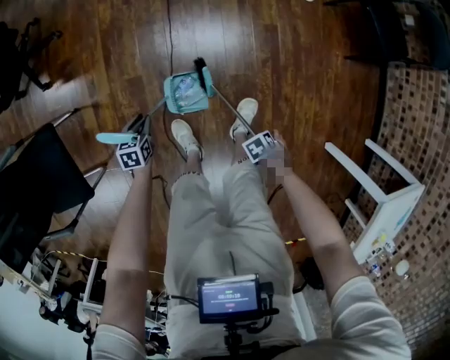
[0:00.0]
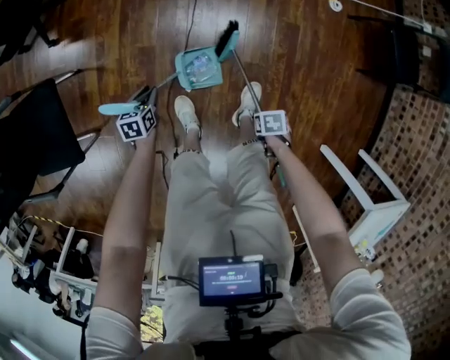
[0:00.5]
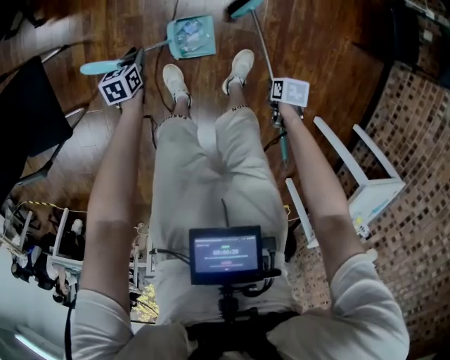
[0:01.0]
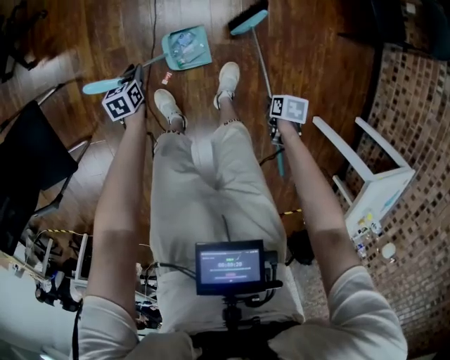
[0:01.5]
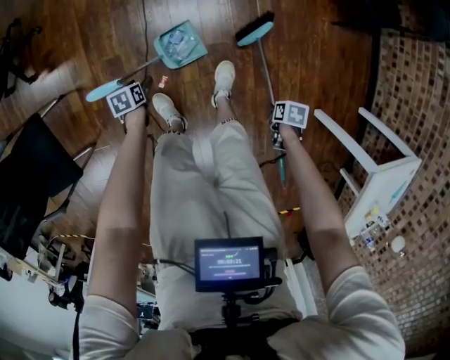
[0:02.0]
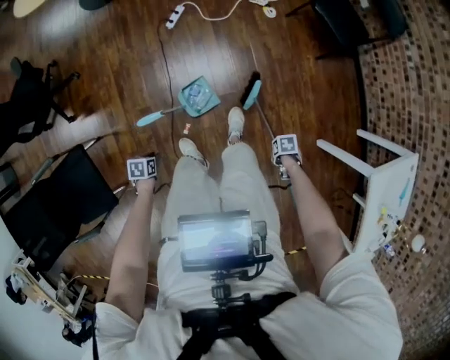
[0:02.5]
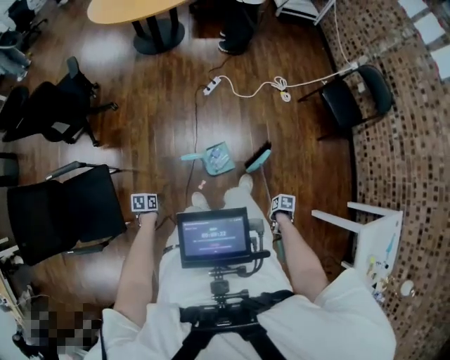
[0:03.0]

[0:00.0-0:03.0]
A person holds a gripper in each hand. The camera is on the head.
0:00.0 to 0:01.5: The left gripper shifts by approximately 10 cm.
0:01.5 to 0:03.0: The left gripper moves about 35 cm, swivels some 20 degrees, and opens, then closes once more.

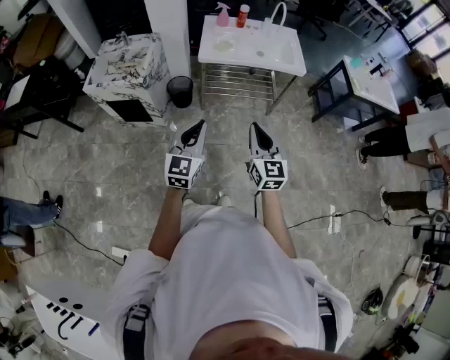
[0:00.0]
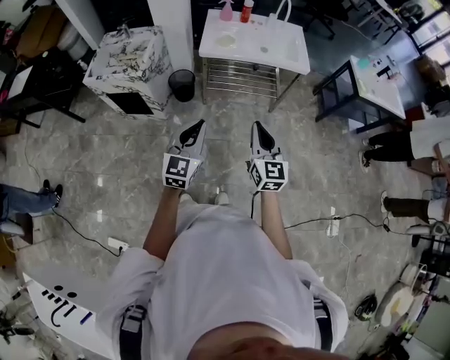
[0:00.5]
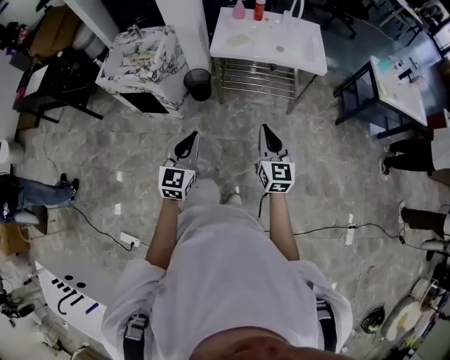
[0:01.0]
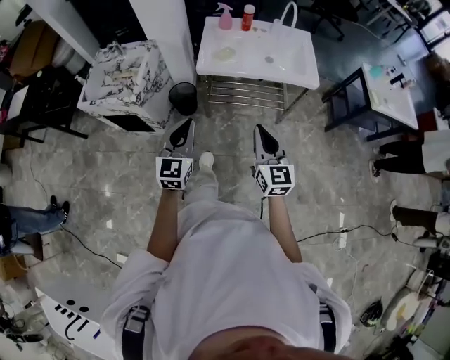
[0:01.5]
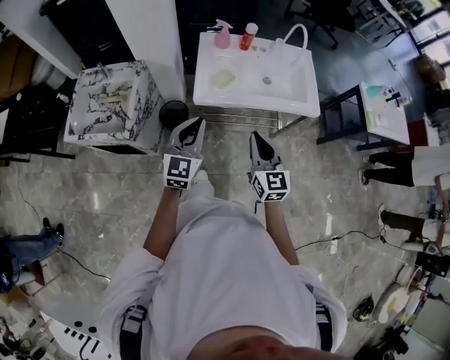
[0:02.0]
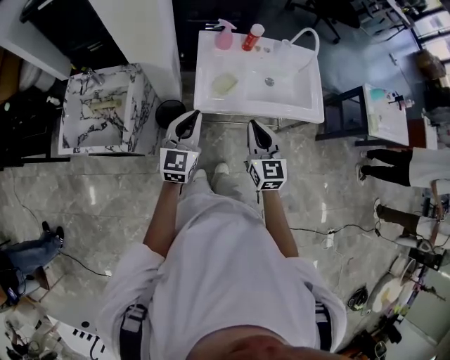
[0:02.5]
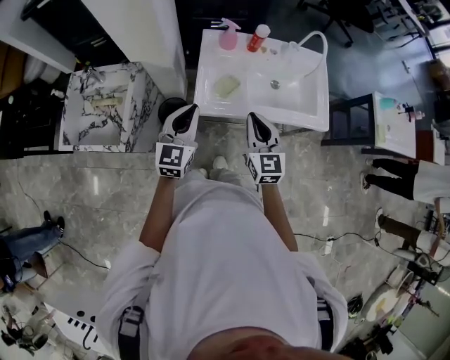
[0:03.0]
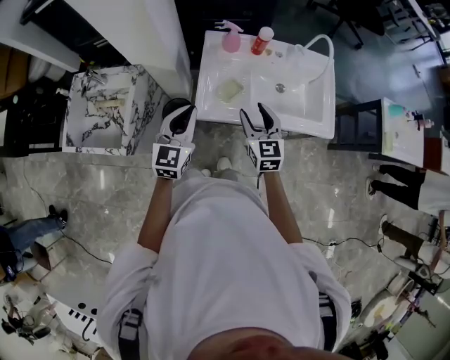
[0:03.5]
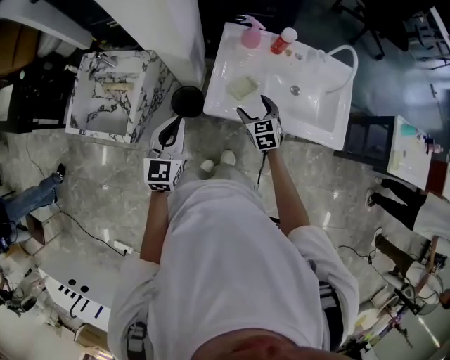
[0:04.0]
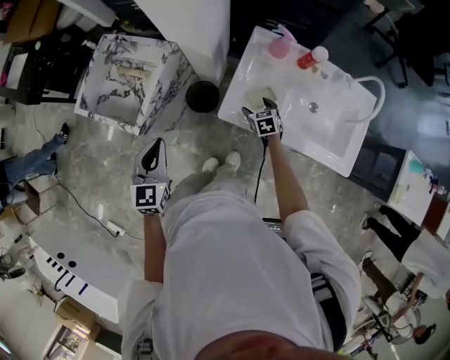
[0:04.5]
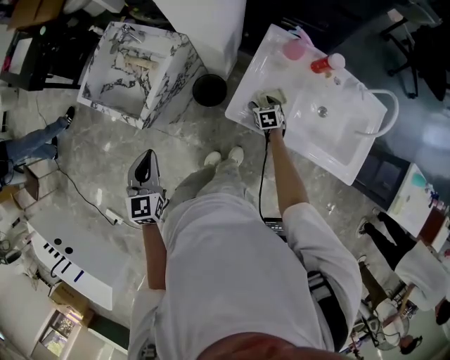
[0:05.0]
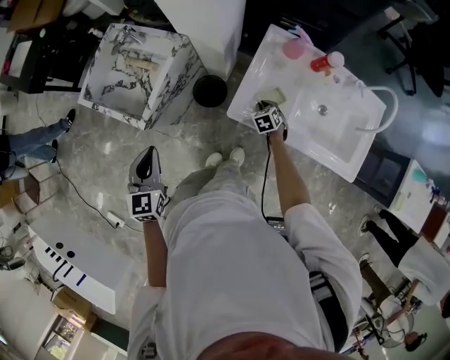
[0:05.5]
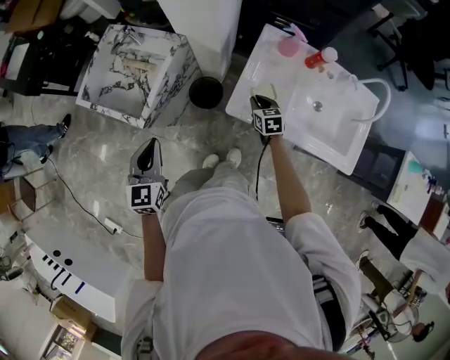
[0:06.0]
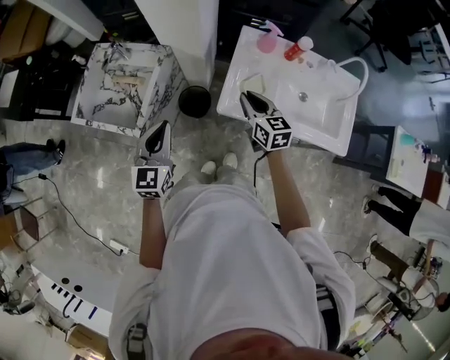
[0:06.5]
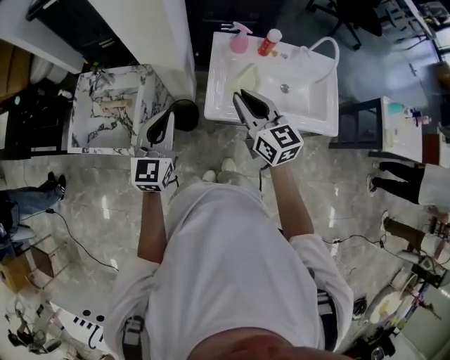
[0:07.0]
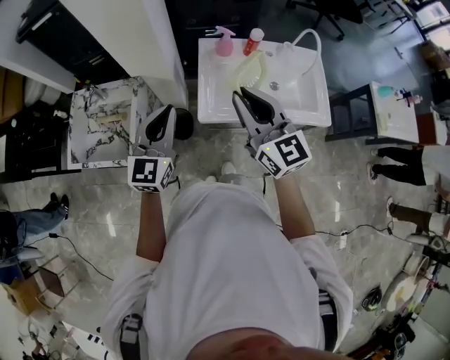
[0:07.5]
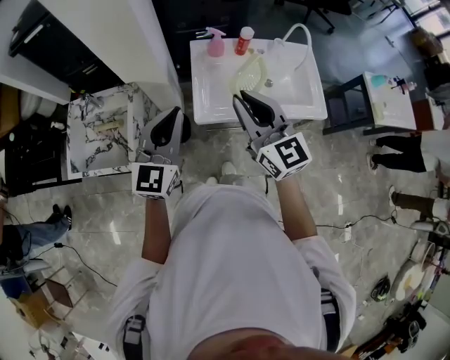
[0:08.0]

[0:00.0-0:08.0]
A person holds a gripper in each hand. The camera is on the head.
0:00.0 to 0:02.0: The grippers both shift forward by roughly 35 cm.
0:02.0 to 0:04.0: The left gripper moves forward and to the left, about 15 cm. Meanwhile the right gripper moves forward and downward, approximately 35 cm, changes its angle by approximately 30 degrees, and opens its fingers.
0:04.0 to 0:06.0: The left gripper heads to the left, covering roughly 15 cm, and rotates approximately 20 degrees. Meanwhile the right gripper travels downward, forward and to the left by approximately 10 cm, and closes its fingers.
0:06.0 to 0:08.0: The right gripper is displaced upward by roughly 40 cm, and points its fingers some 40 degrees further upward, while the left gripper moves upward, some 15 cm, and swivels approximately 40 degrees.

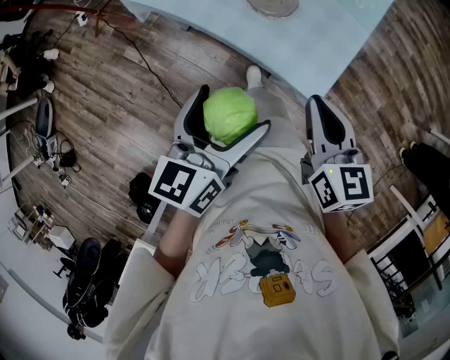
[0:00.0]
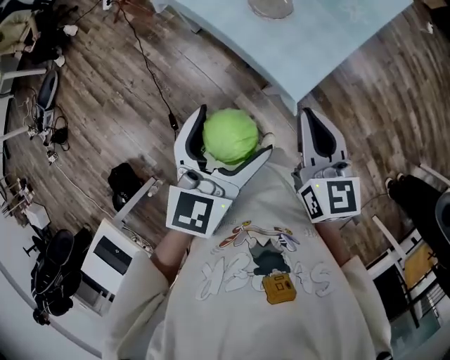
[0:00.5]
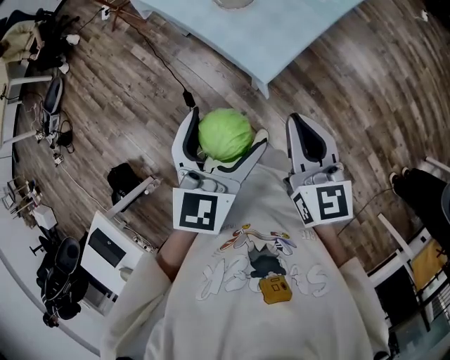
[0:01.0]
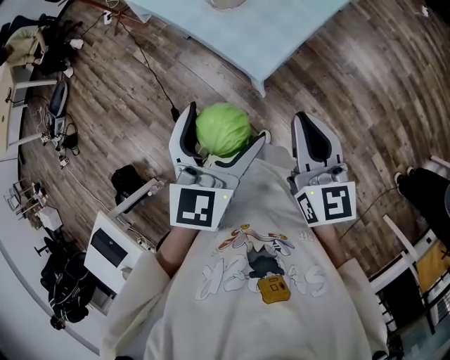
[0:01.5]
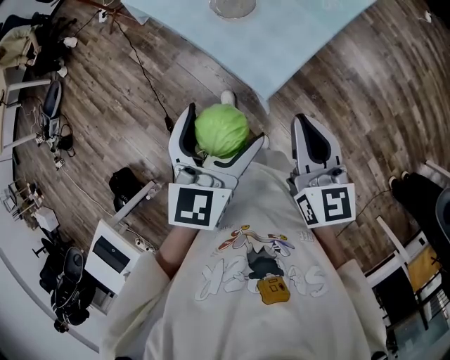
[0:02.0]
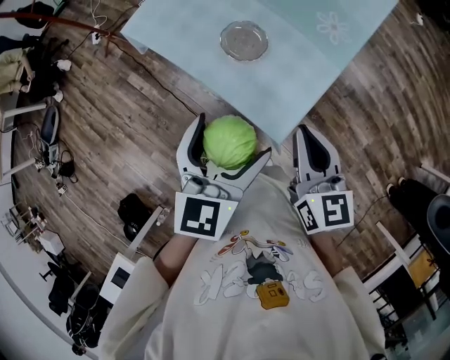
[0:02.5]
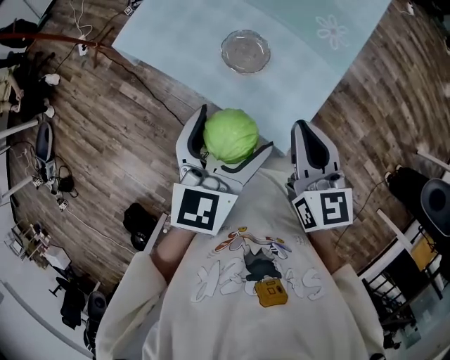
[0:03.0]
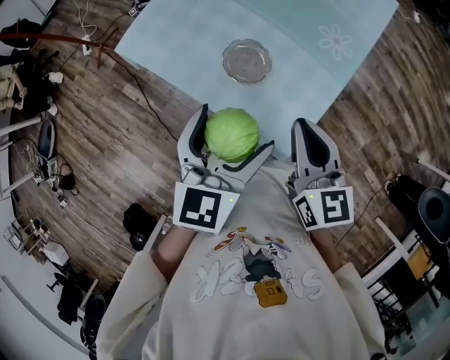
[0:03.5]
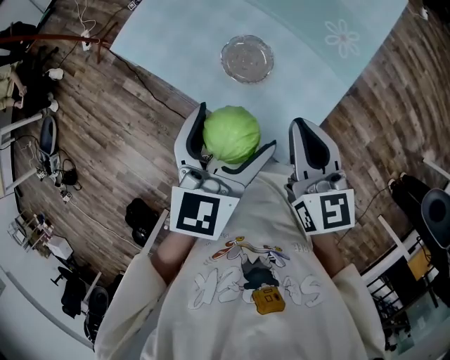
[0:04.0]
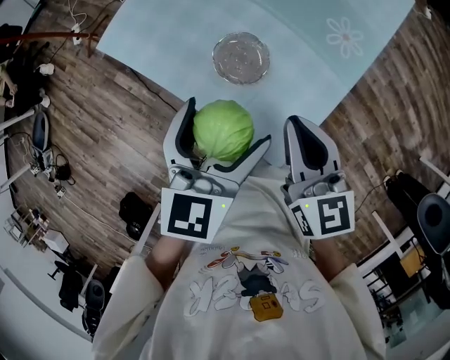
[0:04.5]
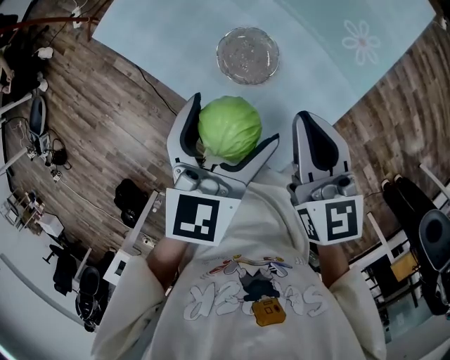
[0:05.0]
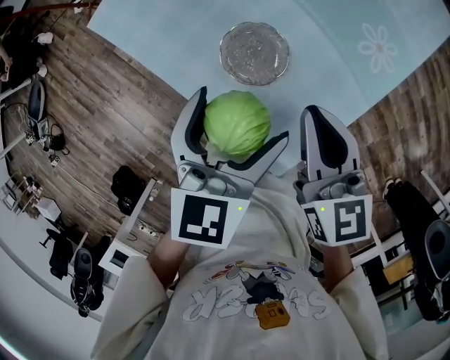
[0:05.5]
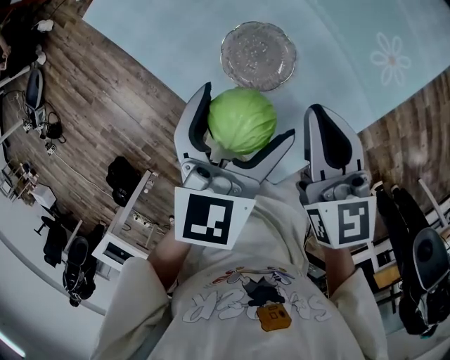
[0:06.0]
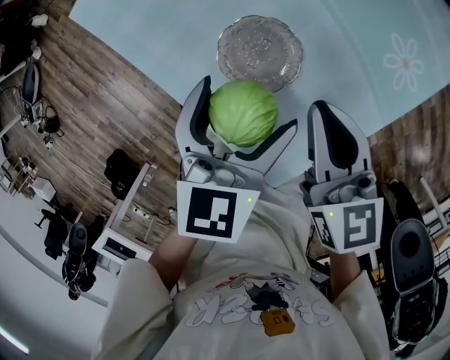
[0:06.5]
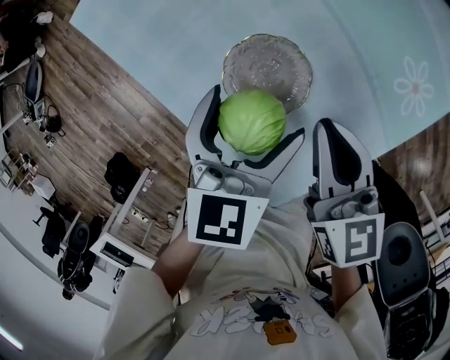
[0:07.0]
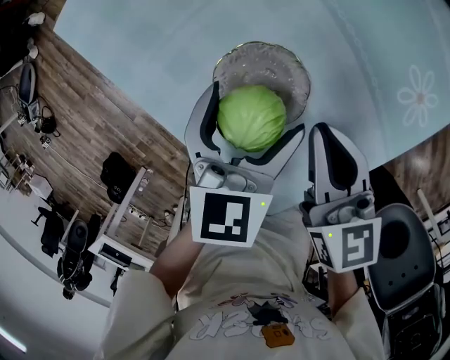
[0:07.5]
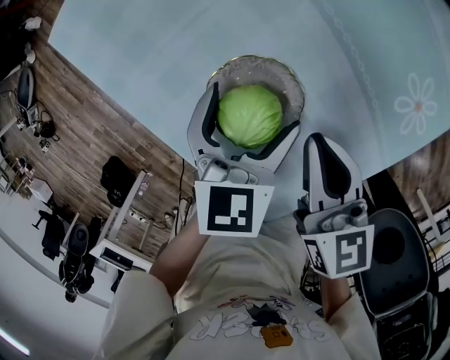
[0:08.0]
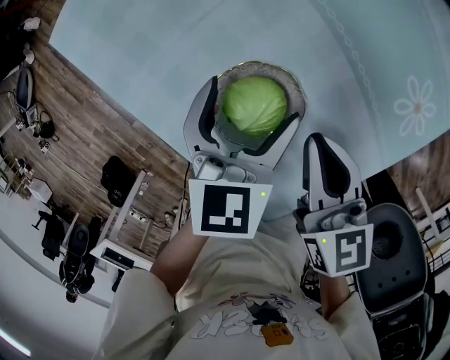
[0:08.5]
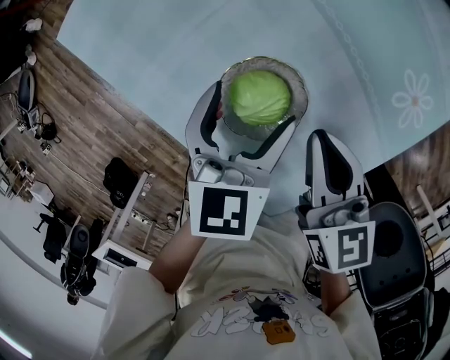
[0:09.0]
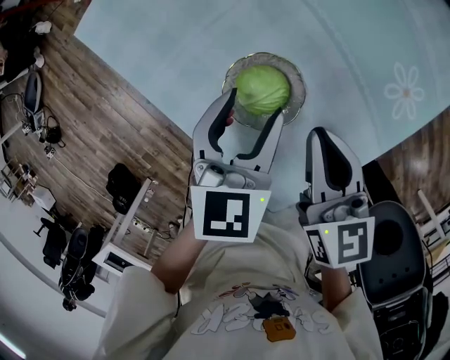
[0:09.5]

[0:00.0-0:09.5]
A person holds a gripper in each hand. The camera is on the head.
0:00.0 to 0:02.0: The two grippers go some 20 cm to the right and backward. The left gripper swivels about 30 degrees.
0:02.0 to 0:04.0: The right gripper shifts about 25 cm forward and to the left; the left gripper is displaced forward by roughly 25 cm.
0:04.0 to 0:05.5: The right gripper is displaced forward and downward by about 15 cm, while the left gripper moves downward and forward, approximately 15 cm.
0:05.5 to 0:07.5: The grippers both shift downward and forward by approximately 15 cm.
0:07.5 to 0:09.5: The left gripper closes its fingers.

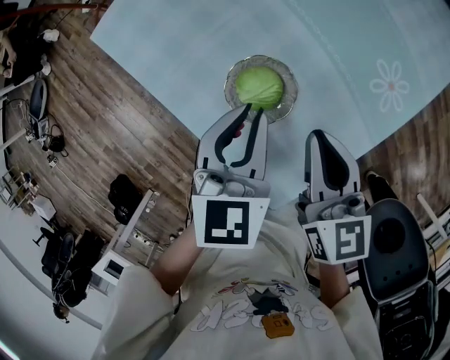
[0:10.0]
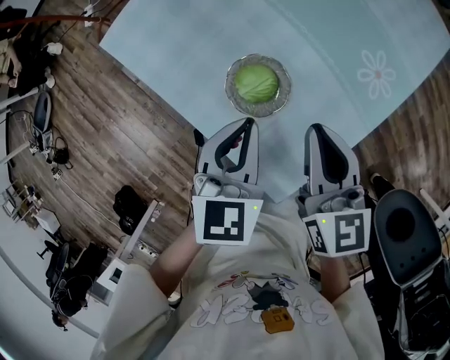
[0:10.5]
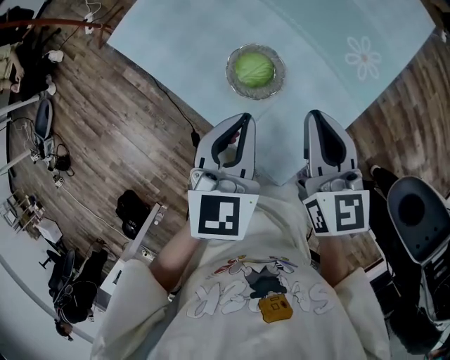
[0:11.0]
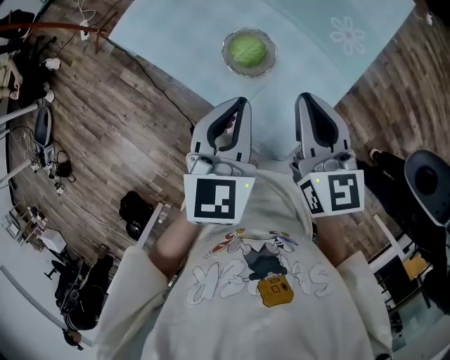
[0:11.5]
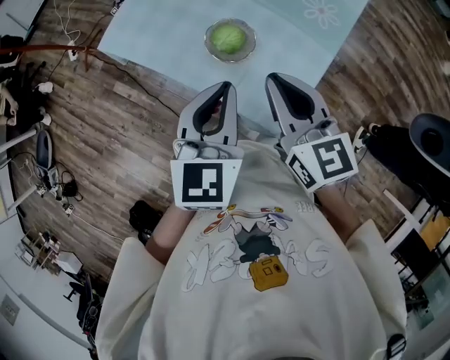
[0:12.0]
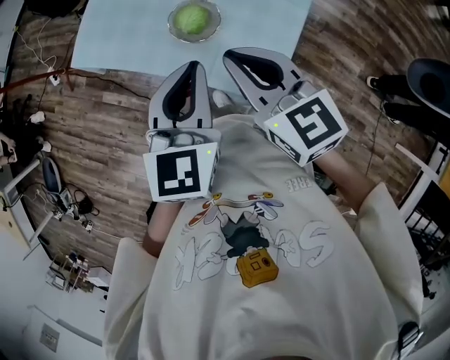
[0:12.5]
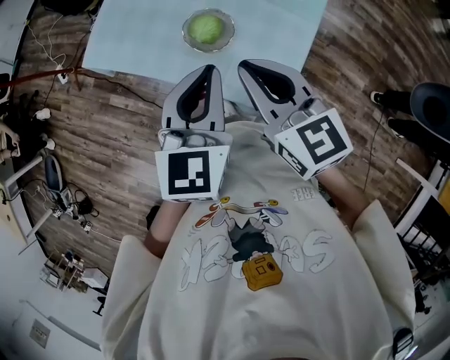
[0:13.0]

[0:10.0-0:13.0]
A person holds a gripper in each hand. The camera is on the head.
0:10.0 to 0:11.5: Both grippers travel together upward and backward, about 20 cm.
0:11.5 to 0:13.0: The left gripper changes place by roughly 5 cm. The right gripper is displaced backward by approximately 5 cm.

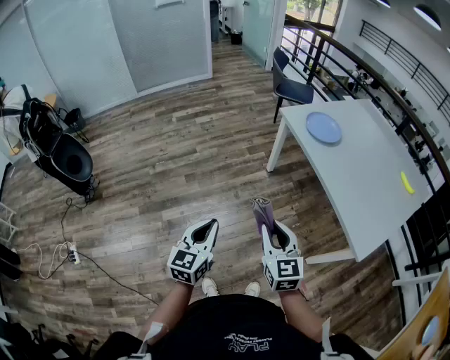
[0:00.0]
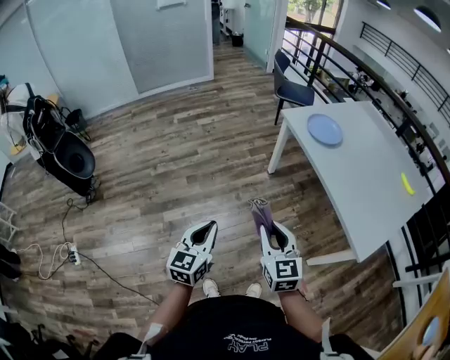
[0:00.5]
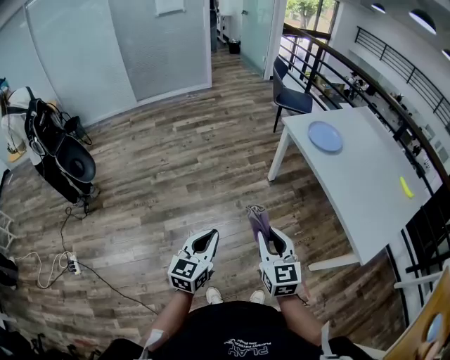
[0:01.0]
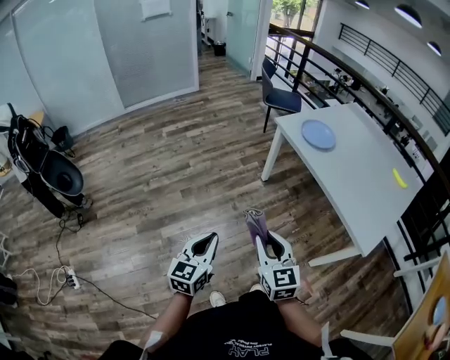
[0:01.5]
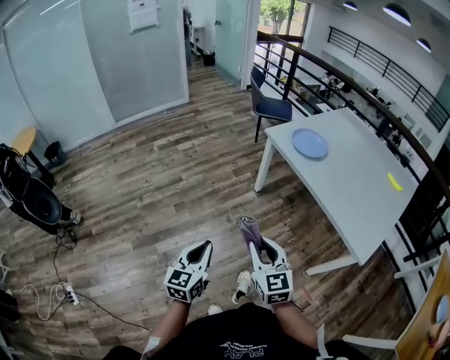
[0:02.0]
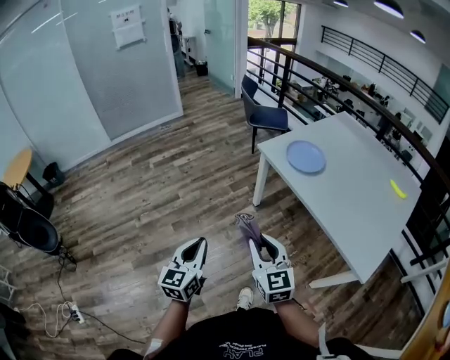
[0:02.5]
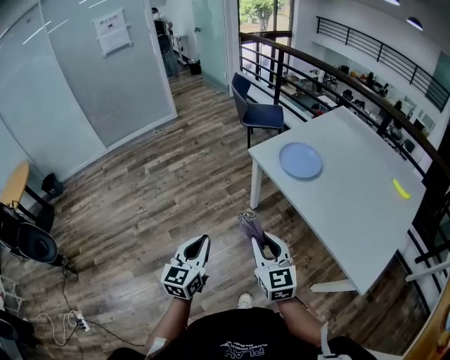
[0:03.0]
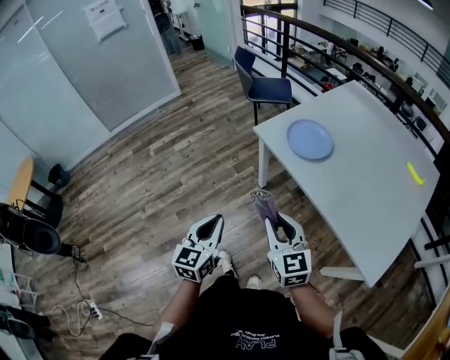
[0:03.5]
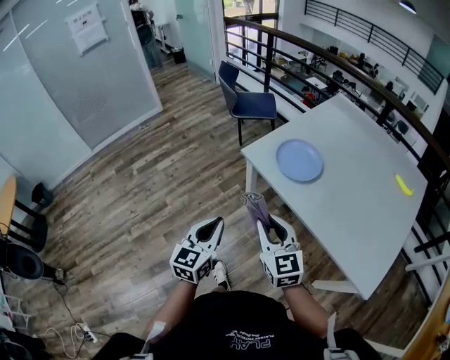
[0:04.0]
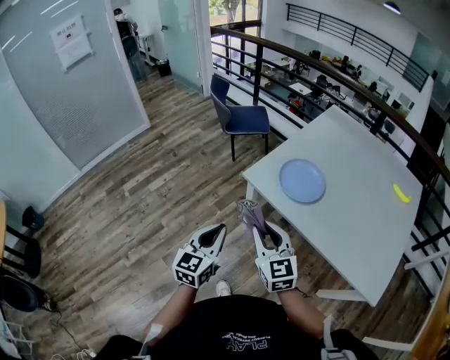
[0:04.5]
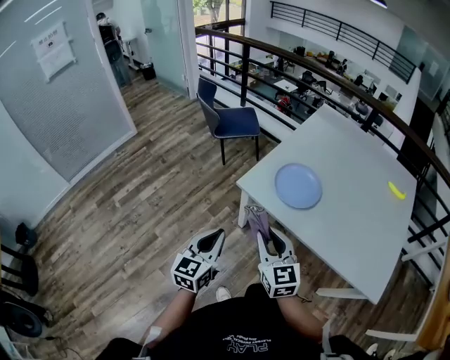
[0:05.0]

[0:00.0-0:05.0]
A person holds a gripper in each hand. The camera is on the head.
0:00.0 to 0:02.5: The two grippers go some 15 cm forward.
0:02.5 to 0:05.0: The grippers both shift forward by approximately 40 cm. The left gripper changes its angle by some 30 degrees.
